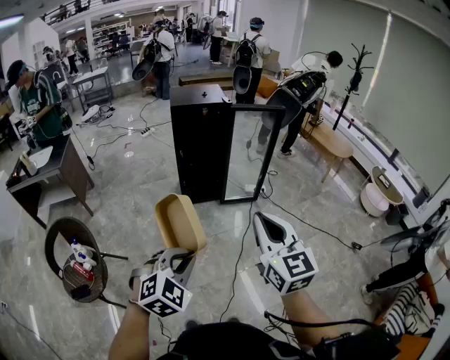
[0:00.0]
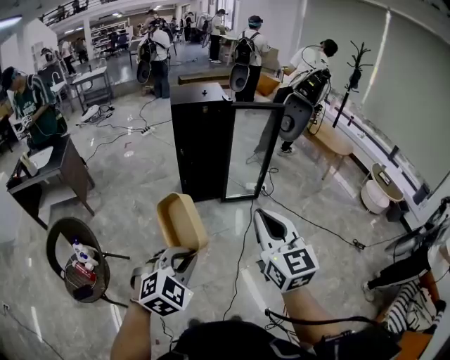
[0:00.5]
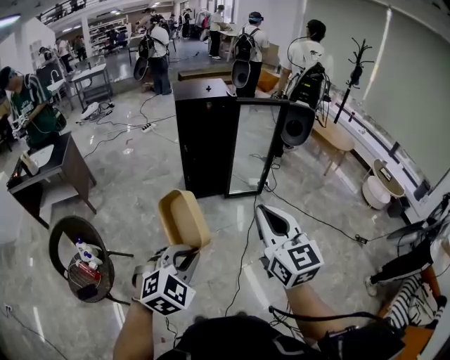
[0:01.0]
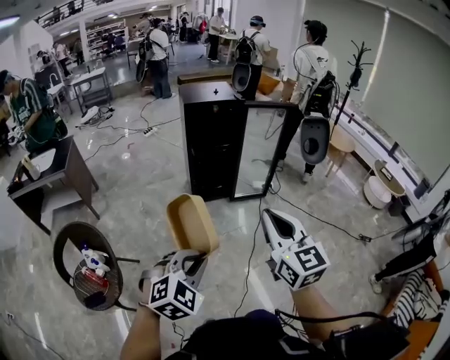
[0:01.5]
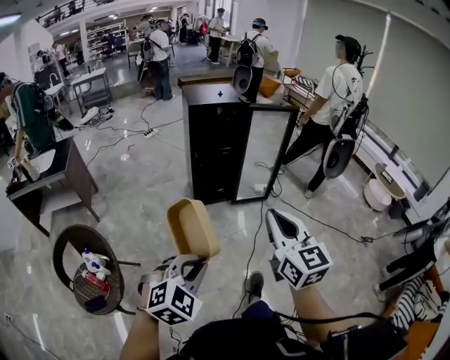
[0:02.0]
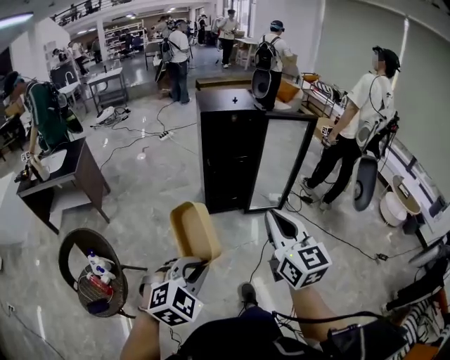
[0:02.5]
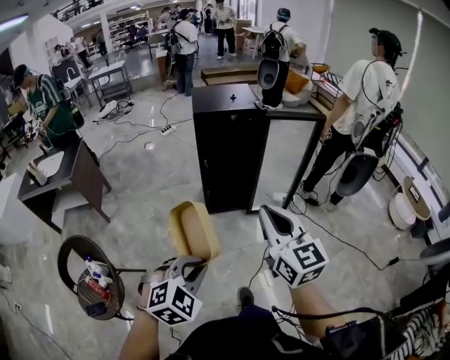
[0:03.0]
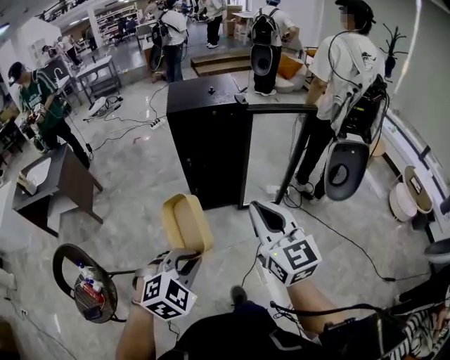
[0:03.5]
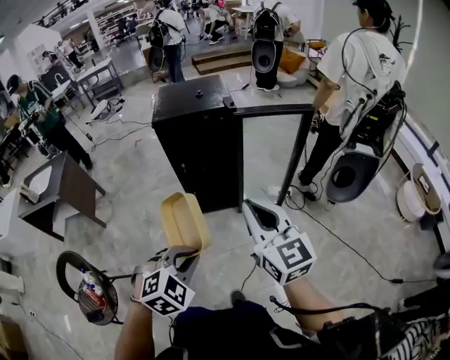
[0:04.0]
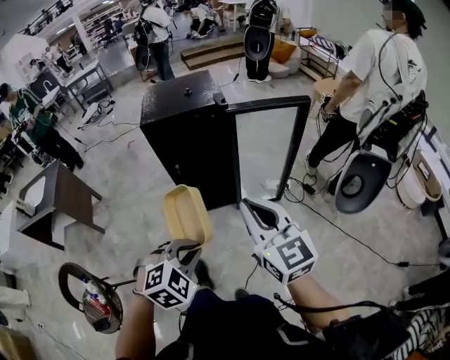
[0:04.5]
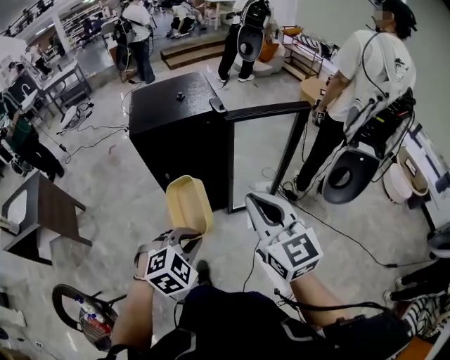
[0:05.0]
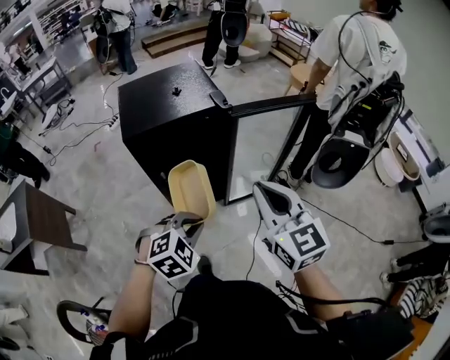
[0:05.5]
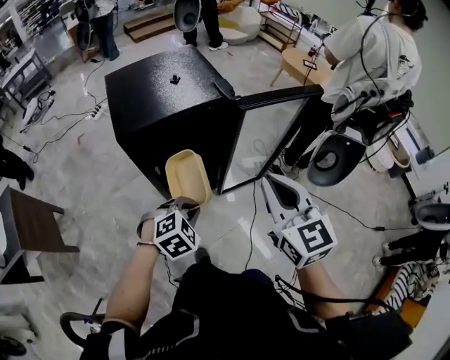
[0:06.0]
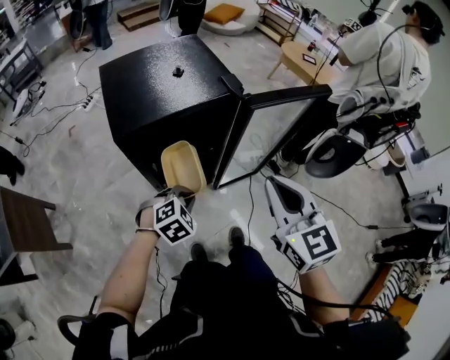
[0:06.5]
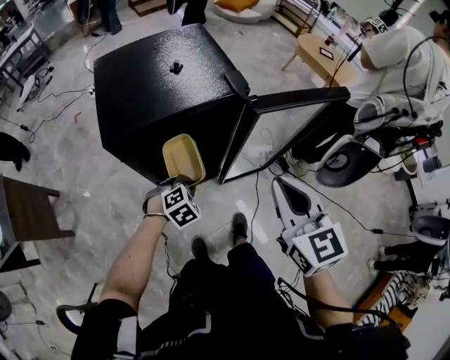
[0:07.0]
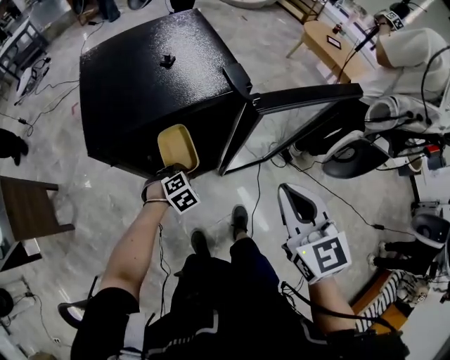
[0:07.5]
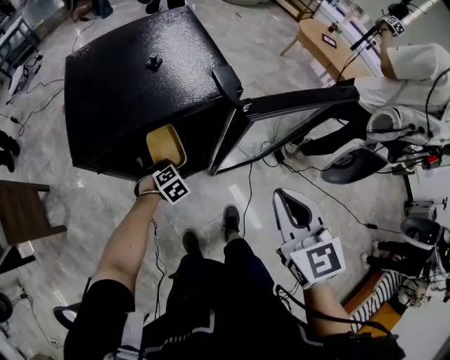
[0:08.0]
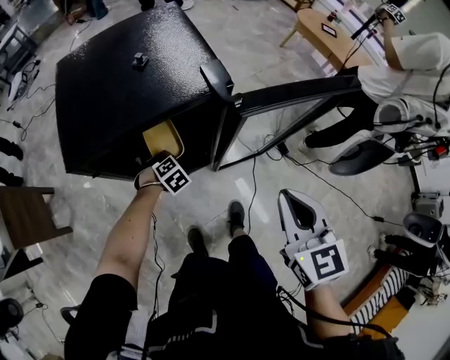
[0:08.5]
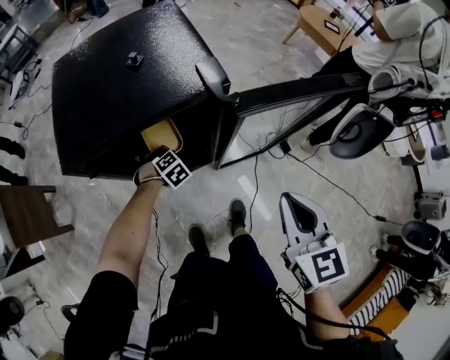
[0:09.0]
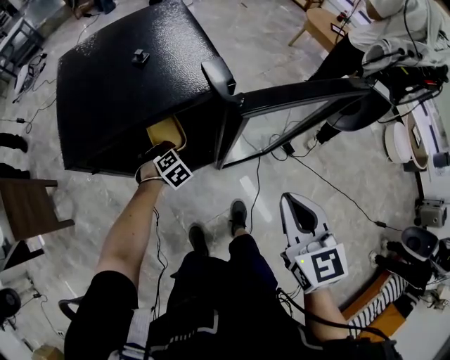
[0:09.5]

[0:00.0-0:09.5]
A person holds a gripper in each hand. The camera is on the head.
0:00.0 to 0:02.0: The two grippers go roughly 10 cm to the left.
0:02.0 to 0:04.0: The left gripper travels forward and to the right by roughly 35 cm, while the right gripper is displaced forward by some 35 cm.
0:04.0 to 0:05.5: The grippers both shift forward by approximately 20 cm.
0:05.5 to 0:07.5: The right gripper heads forward and downward, covering some 15 cm, while the left gripper heads downward and forward, covering approximately 35 cm.
0:07.5 to 0:09.5: The right gripper ends up roughly 5 cm from where it was. Meanwhile the left gripper goes roughly 10 cm forward.

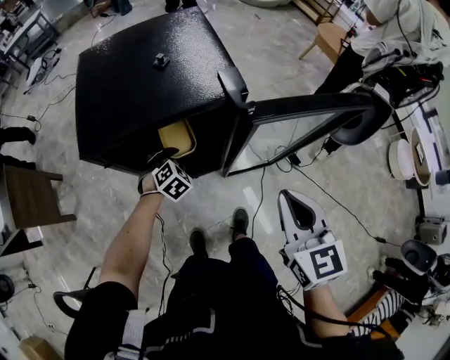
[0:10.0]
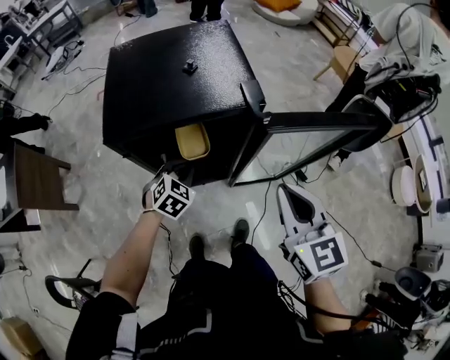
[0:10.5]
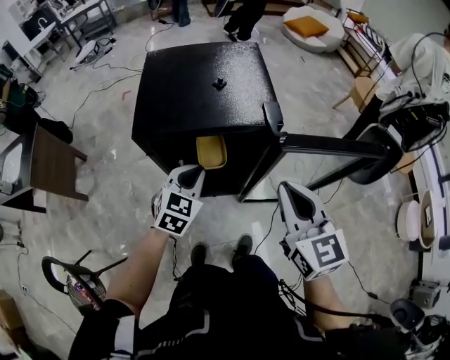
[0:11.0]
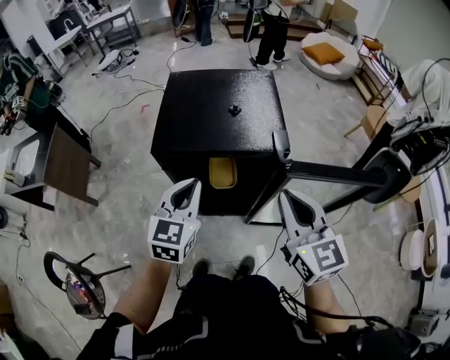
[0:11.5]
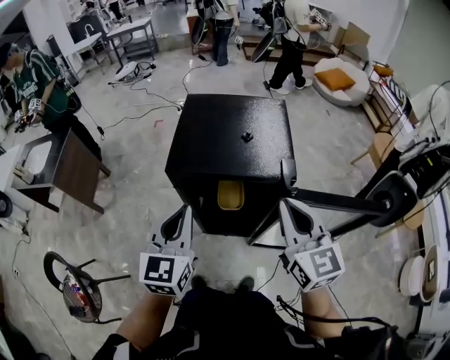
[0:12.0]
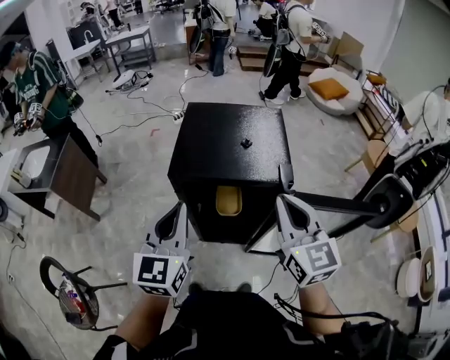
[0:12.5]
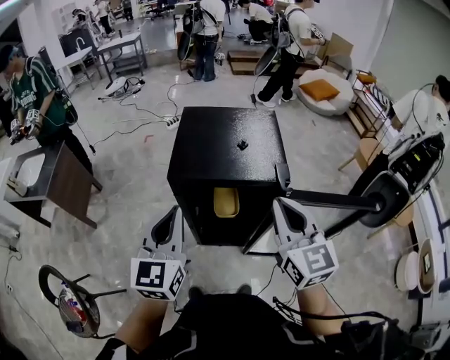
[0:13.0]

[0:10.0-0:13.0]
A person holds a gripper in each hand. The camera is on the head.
0:10.0 to 0:11.5: The left gripper heads upward, covering roughly 30 cm, angles its fingers upward, by about 40 degrees, and closes its fingers. The right gripper travels upward, forward and to the left by roughly 15 cm, and swivels some 20 degrees.
0:11.5 to 0:13.0: The left gripper travels upward and to the left by approximately 10 cm, while the right gripper changes place by roughly 5 cm.

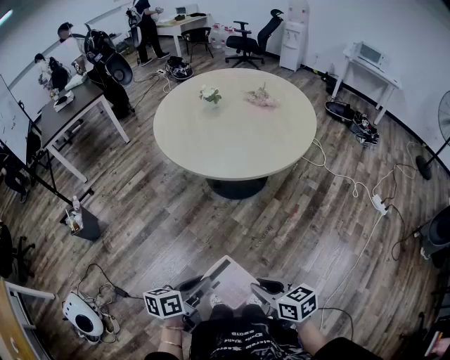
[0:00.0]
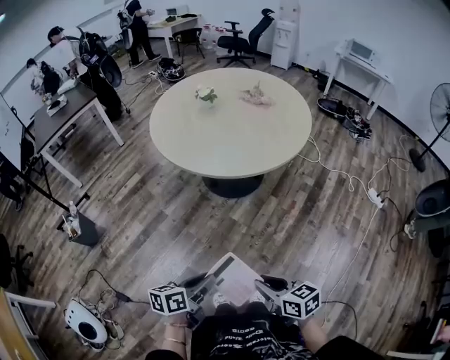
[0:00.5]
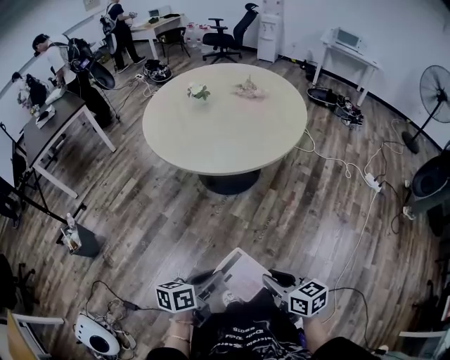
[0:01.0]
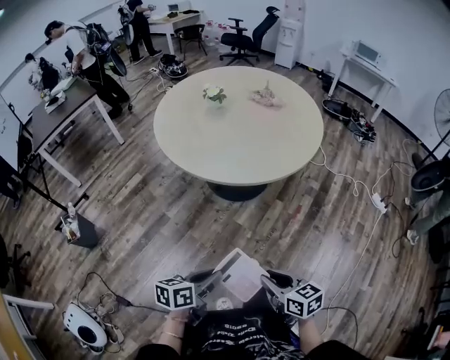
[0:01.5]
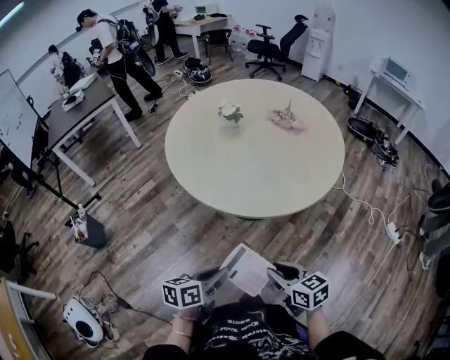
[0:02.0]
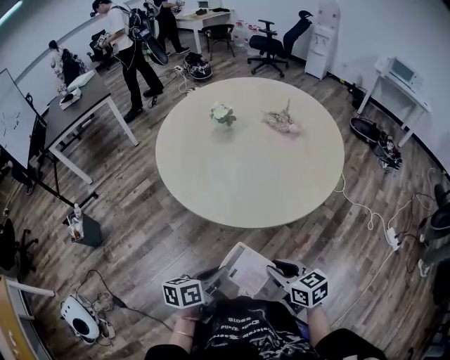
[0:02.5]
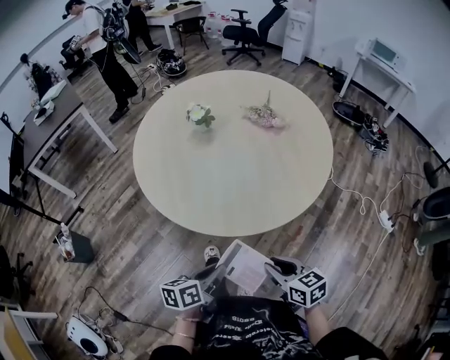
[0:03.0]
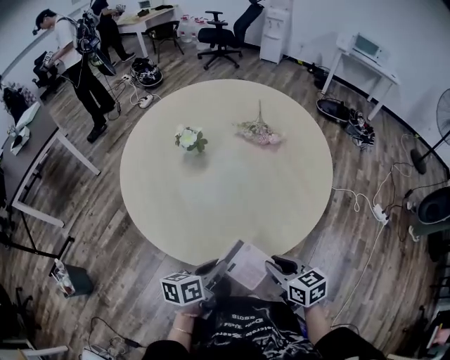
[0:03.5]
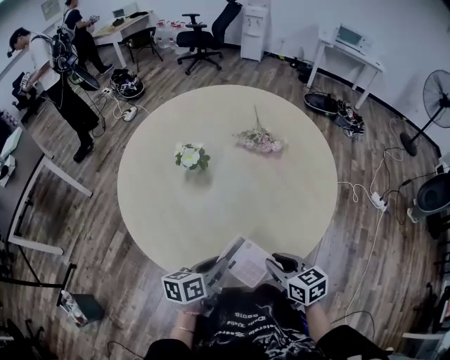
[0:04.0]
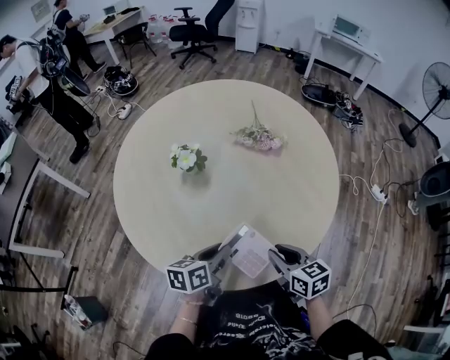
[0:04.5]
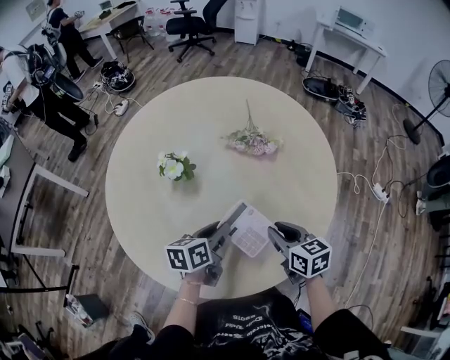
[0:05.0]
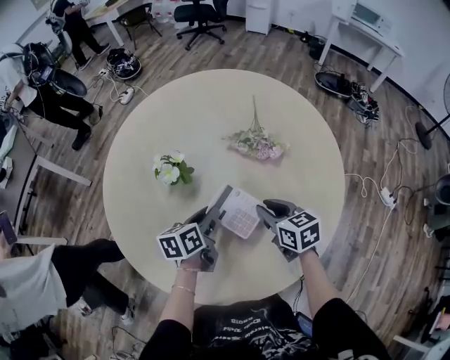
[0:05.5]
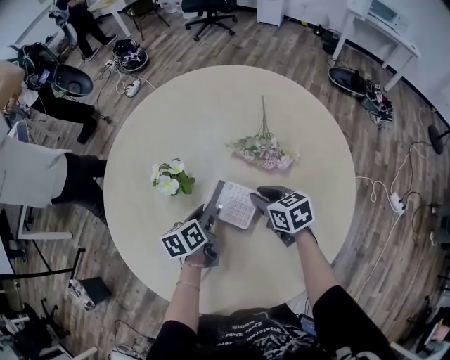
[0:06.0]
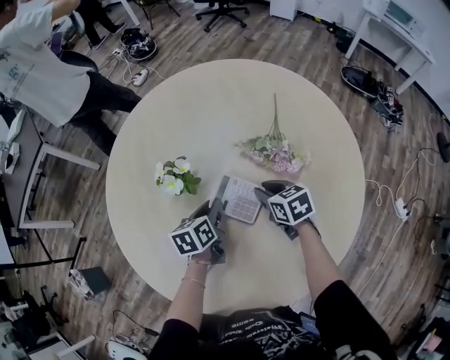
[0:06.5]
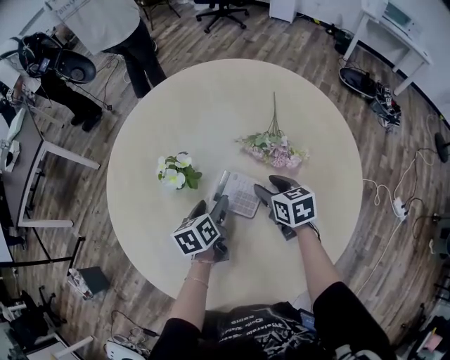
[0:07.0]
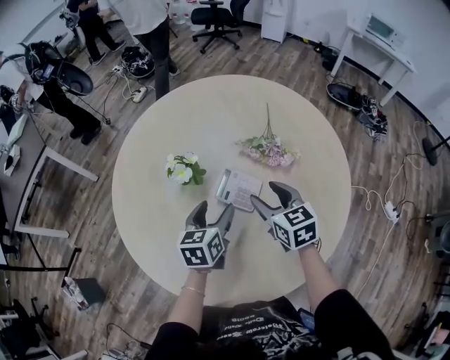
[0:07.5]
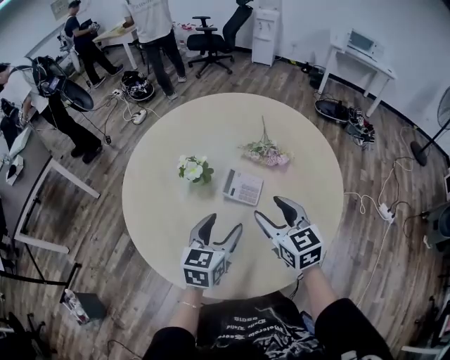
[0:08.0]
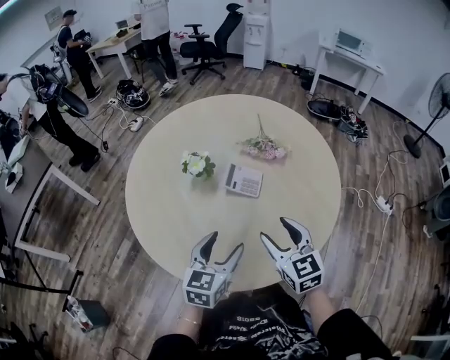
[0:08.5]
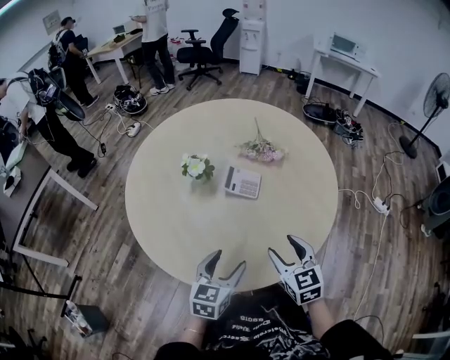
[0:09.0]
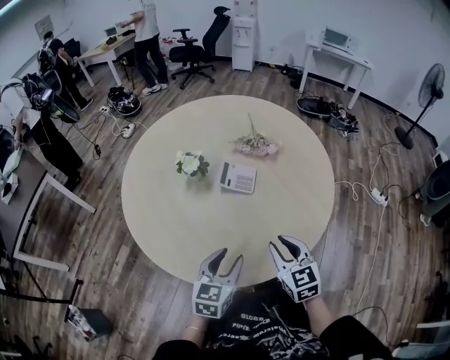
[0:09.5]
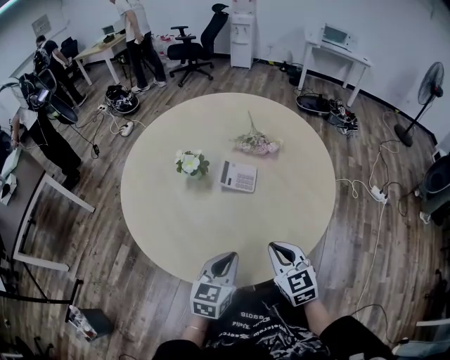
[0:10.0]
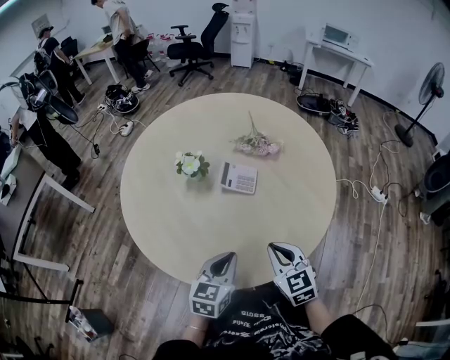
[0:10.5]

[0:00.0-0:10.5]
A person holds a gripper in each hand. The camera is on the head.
0:00.0 to 0:02.0: Both grippers travel together forward, approximately 25 cm.
0:02.0 to 0:04.0: Both grippers travel together forward, roughly 35 cm. The right gripper swivels some 20 degrees.
0:04.0 to 0:06.5: The left gripper shifts by some 35 cm, and turns by roughly 30 degrees. Meanwhile the right gripper ends up about 40 cm from where it was.
0:06.5 to 0:08.5: Both grippers move backward and upward, roughly 35 cm. The left gripper rotates some 40 degrees, and opens up; the right gripper swivels roughly 40 degrees, and opens up.
0:08.5 to 0:10.5: The right gripper goes some 10 cm backward and downward, and closes up. Meanwhile the left gripper moves some 5 cm, and closes up.

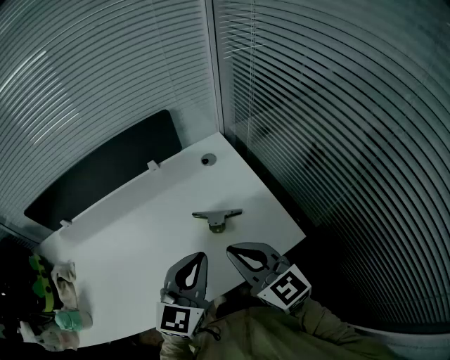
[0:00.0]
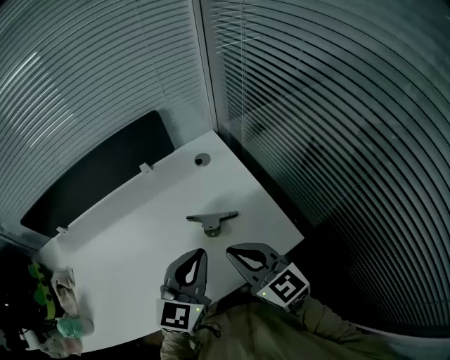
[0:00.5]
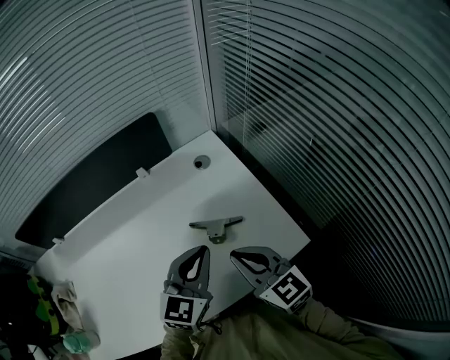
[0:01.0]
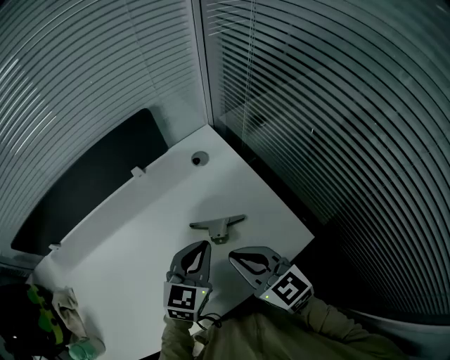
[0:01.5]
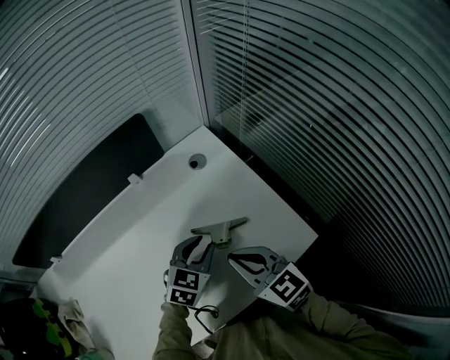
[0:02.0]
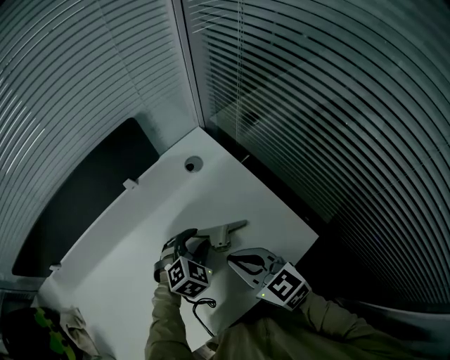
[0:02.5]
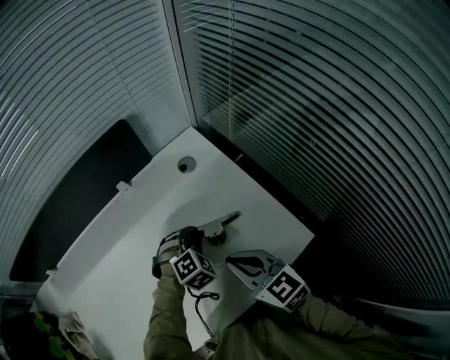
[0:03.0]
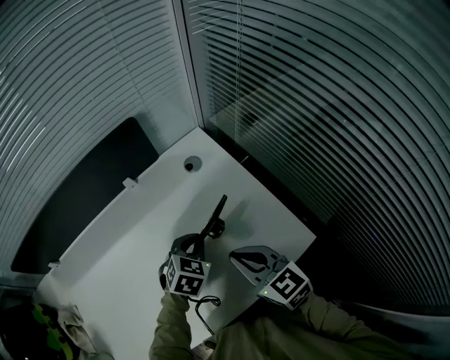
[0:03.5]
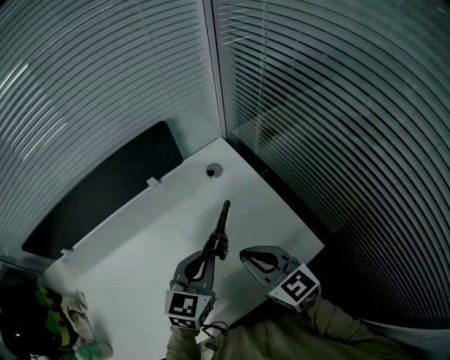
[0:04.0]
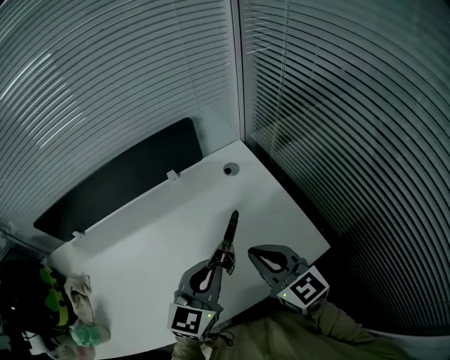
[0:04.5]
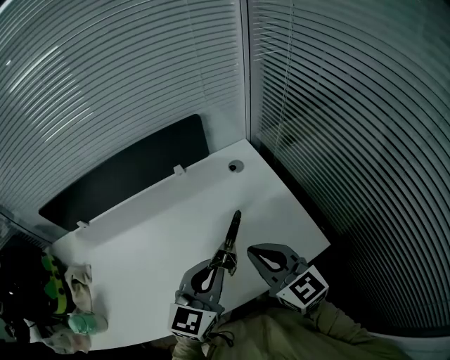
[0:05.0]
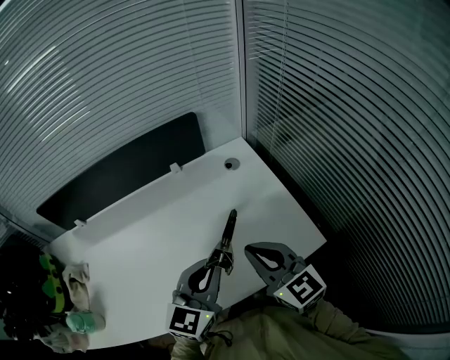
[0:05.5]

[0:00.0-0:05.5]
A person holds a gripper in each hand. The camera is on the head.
0:00.0 to 0:02.0: The left gripper goes roughly 20 cm downward and forward, swivels roughly 30 degrees, and opens its fingers; the right gripper moves downward and forward, about 10 cm.
0:02.0 to 0:03.5: The left gripper closes up.
0:03.5 to 0:05.5: The left gripper is displaced upward and backward by approximately 25 cm, and tips its fingers upward by roughly 40 degrees. Meanwhile the right gripper goes about 10 cm upward and backward.
